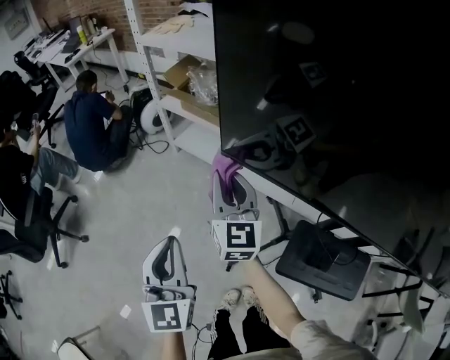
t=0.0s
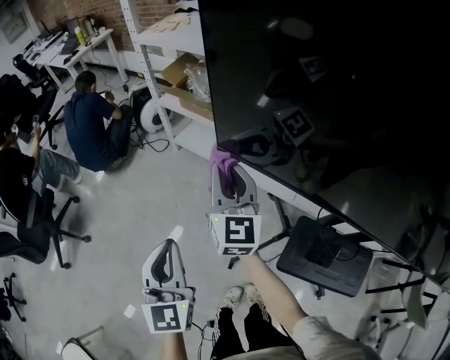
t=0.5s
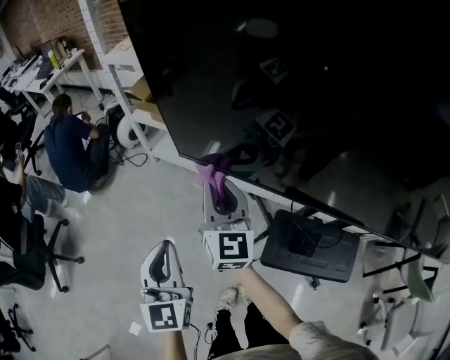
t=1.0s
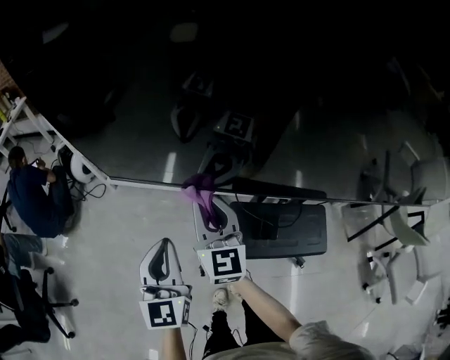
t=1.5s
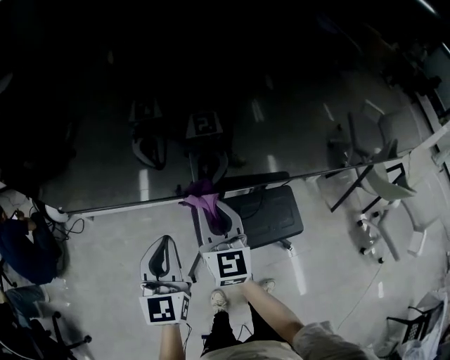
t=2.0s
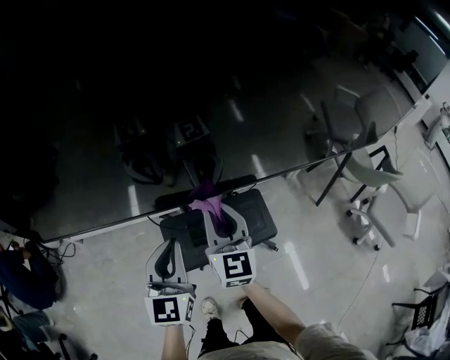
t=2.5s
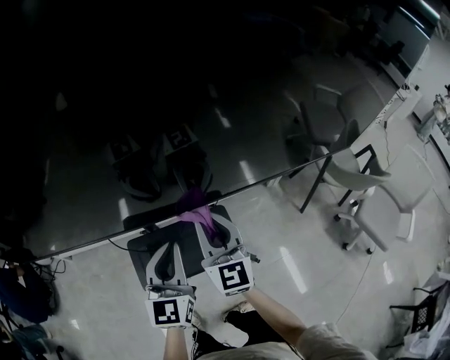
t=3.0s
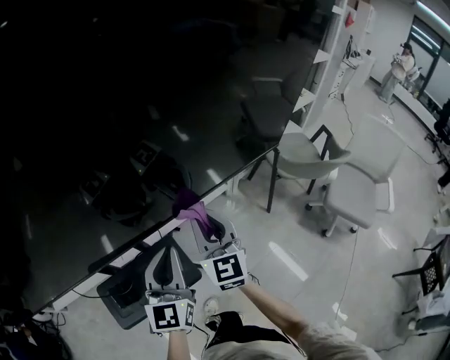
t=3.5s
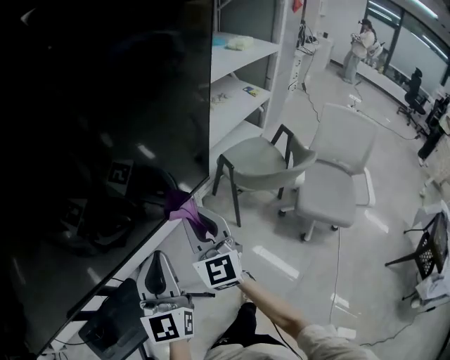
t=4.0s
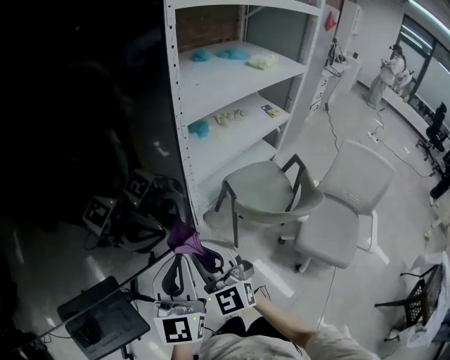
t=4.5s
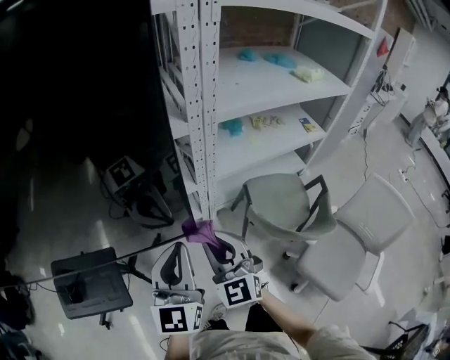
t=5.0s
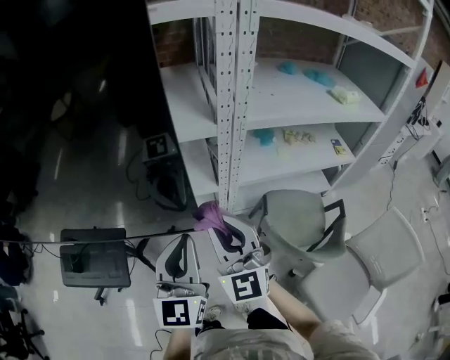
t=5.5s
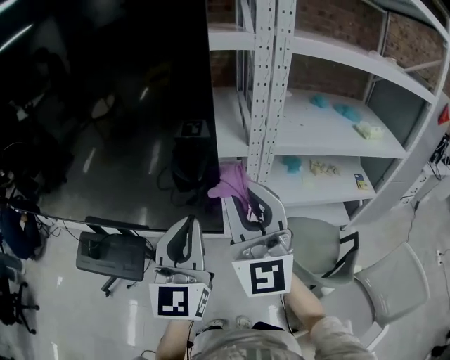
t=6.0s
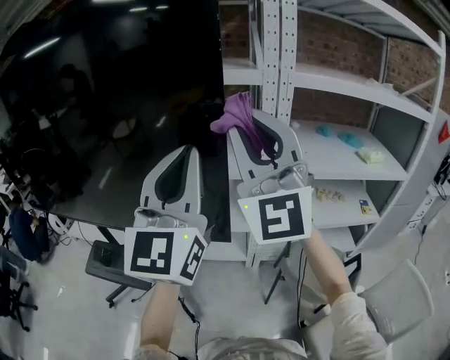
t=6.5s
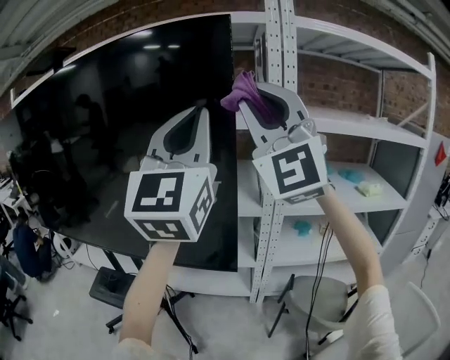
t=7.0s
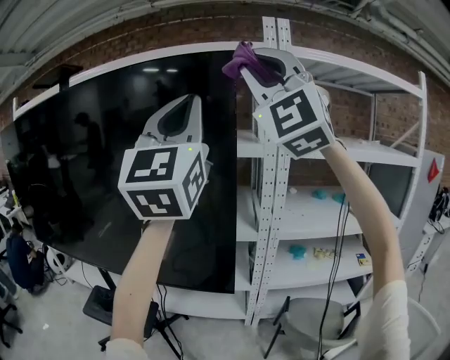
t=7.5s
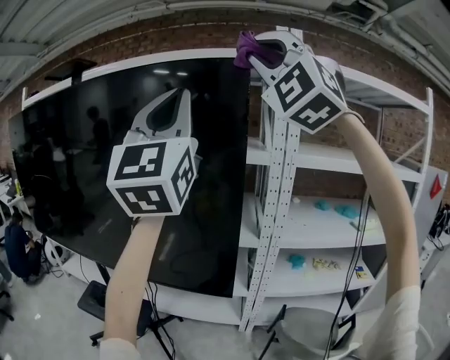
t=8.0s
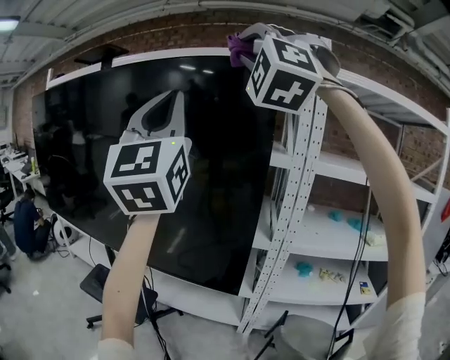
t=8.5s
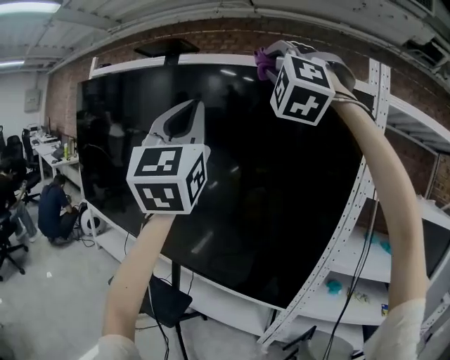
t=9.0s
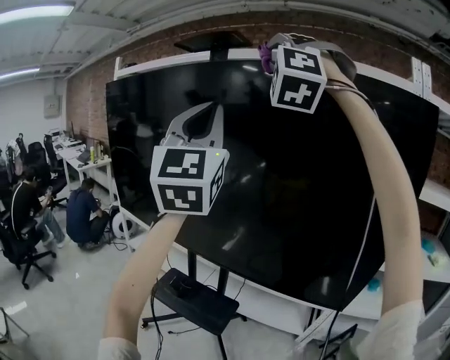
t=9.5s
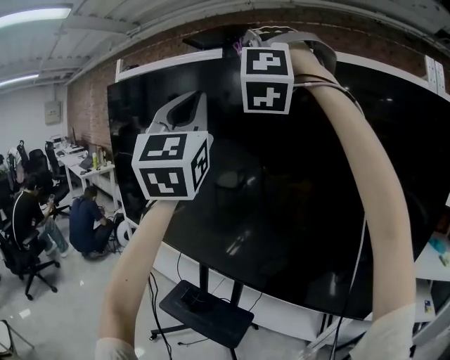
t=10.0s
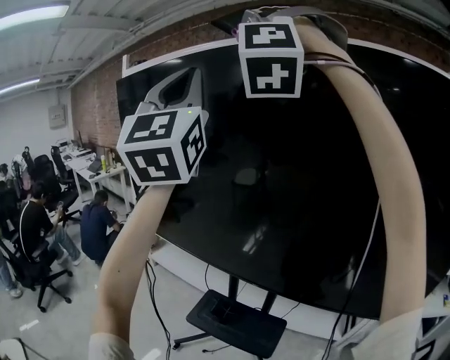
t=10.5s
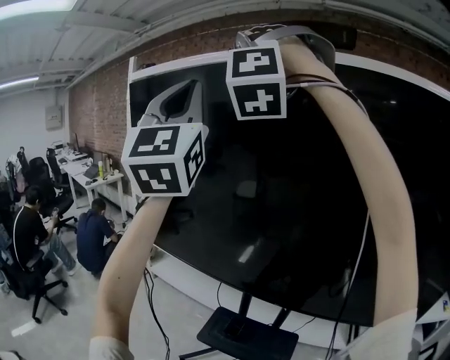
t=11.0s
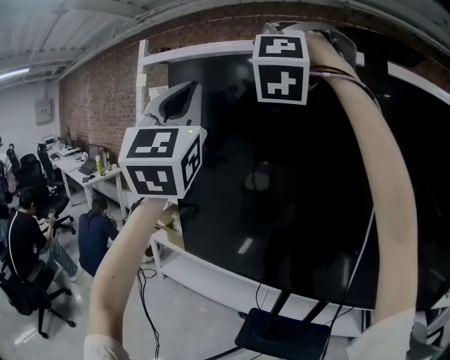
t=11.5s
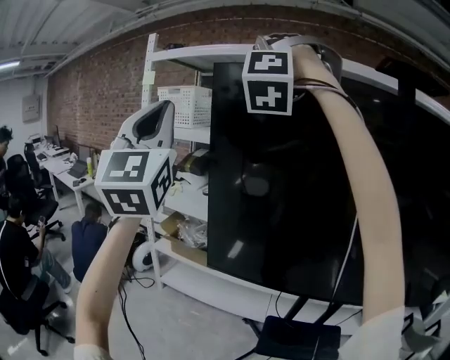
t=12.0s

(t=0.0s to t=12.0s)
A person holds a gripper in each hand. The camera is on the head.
t=0.0s - t=2.0s: The left gripper shifts by approximately 30 cm, and changes its angle by about 40 degrees, while the right gripper changes place by roughly 35 cm, and turns by roughly 30 degrees.
t=2.0s - t=4.0s: Both grippers are carried about 70 cm. The left gripper swivels about 30 degrees, while the right gripper rotates roughly 30 degrees.
t=4.0s - t=6.0s: The right gripper is displaced upward by approximately 25 cm, and swivels approximately 50 degrees. The left gripper heads upward, covering some 15 cm, and swivels roughly 30 degrees.
t=6.0s - t=8.0s: Both grippers travel together upward, about 40 cm. The right gripper rotates around the line of its fingers by approximately 60 degrees, counterclockwise from behind; the left gripper angles its fingers upward, by approximately 30 degrees.
t=8.0s - t=10.0s: Both grippers are carried to the left, some 50 cm. The right gripper rotates roughly 20 degrees. Meanwhile the left gripper turns by some 20 degrees.
t=10.0s - t=12.0s: The pair of grippers is taken to the left, roughly 60 cm.

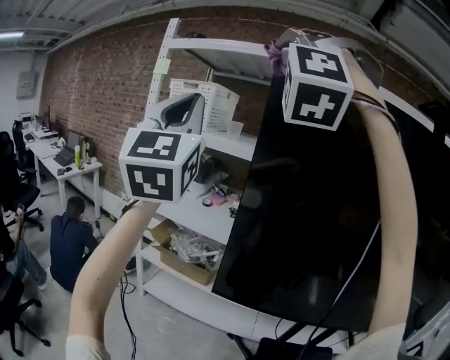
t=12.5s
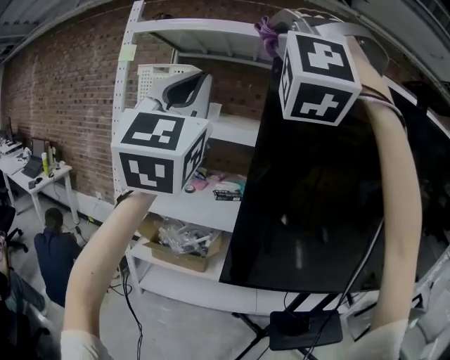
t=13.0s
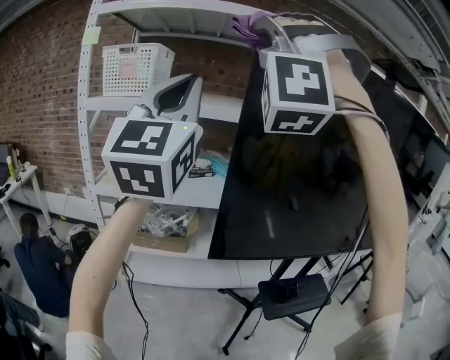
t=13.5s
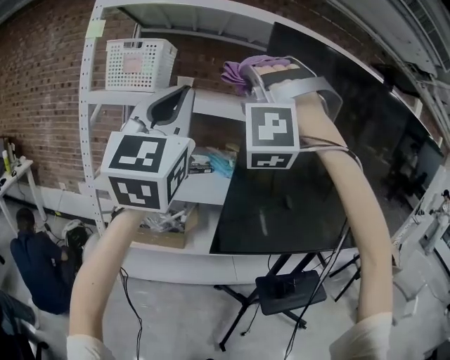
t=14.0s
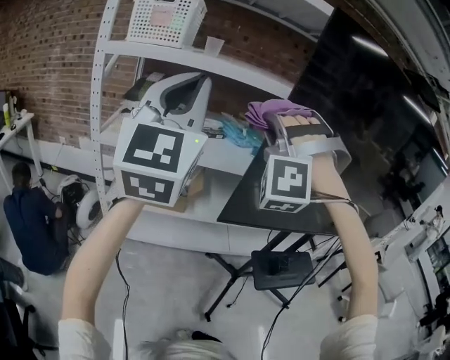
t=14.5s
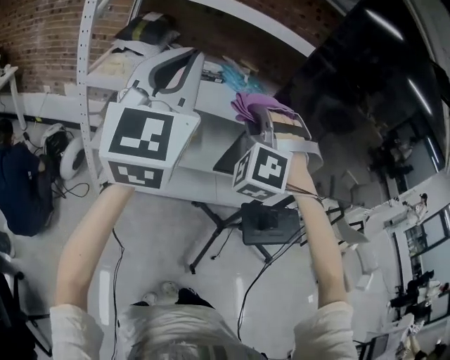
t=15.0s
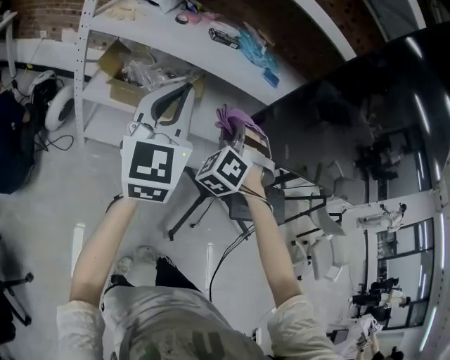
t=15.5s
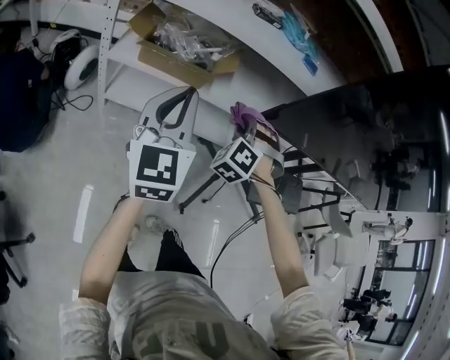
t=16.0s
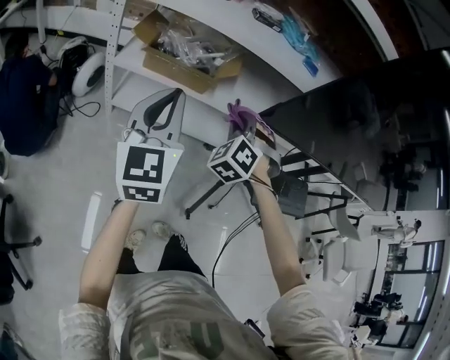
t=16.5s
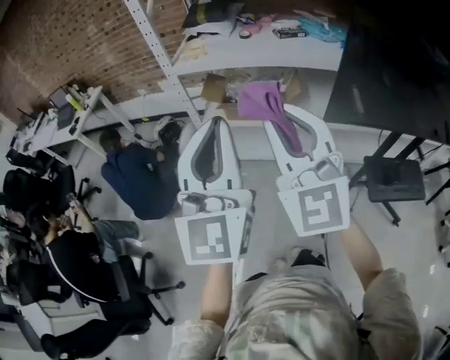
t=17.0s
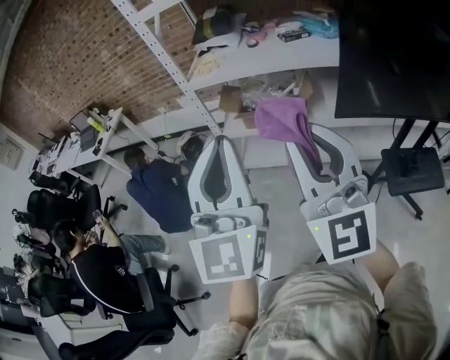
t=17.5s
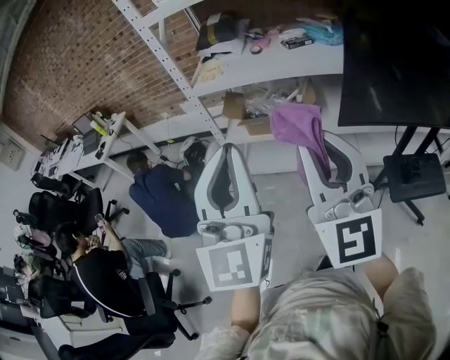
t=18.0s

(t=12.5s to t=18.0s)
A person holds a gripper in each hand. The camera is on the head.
t=12.5s - t=14.5s: The left gripper heads downward and to the left, covering about 15 cm, and rotates about 30 degrees, while the right gripper moves downward, approximately 30 cm, and swivels approximately 30 degrees.
t=14.5s - t=16.0s: Both grippers travel together downward, roughly 40 cm. The right gripper angles its fingers downward, by approximately 30 degrees; the left gripper changes its angle by approximately 30 degrees.
t=16.0s - t=18.0s: The right gripper goes roughly 30 cm upward, and points its fingers approximately 50 degrees further upward, while the left gripper ends up about 25 cm from where it was, and swivels about 20 degrees.

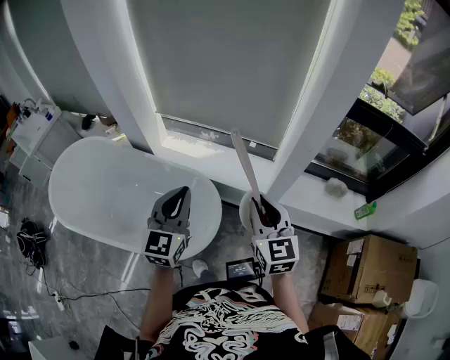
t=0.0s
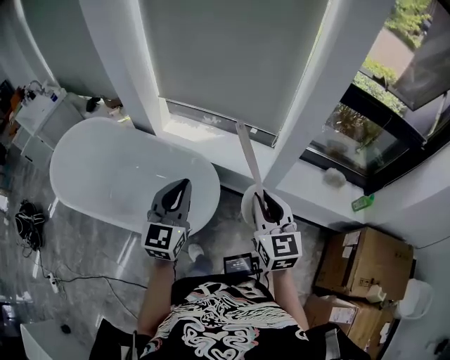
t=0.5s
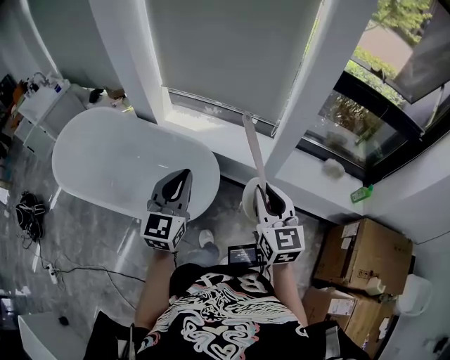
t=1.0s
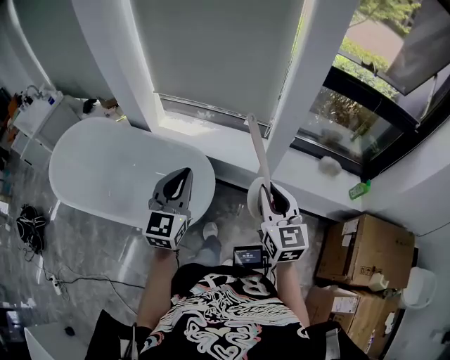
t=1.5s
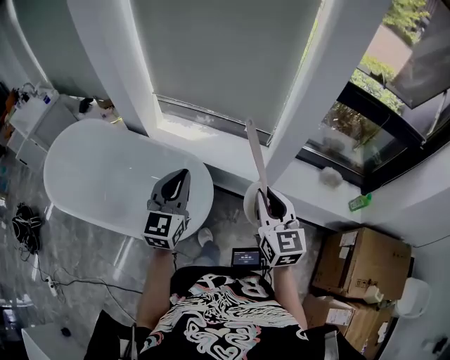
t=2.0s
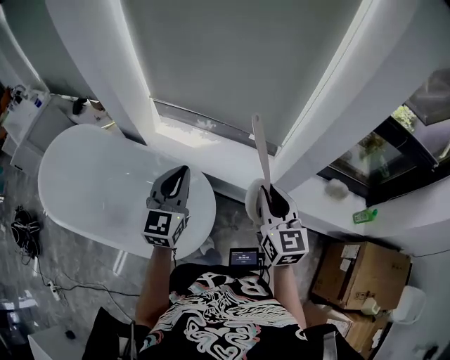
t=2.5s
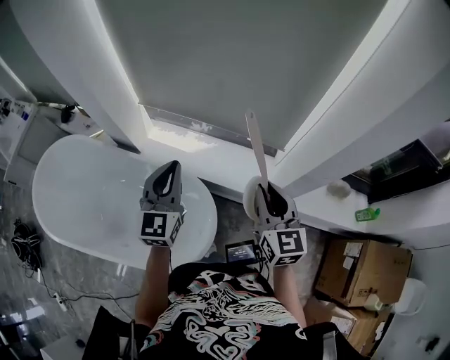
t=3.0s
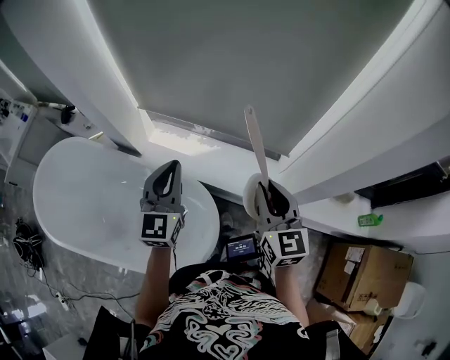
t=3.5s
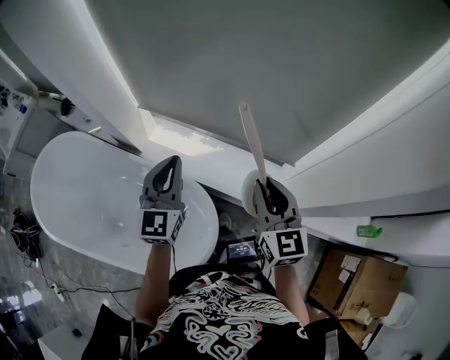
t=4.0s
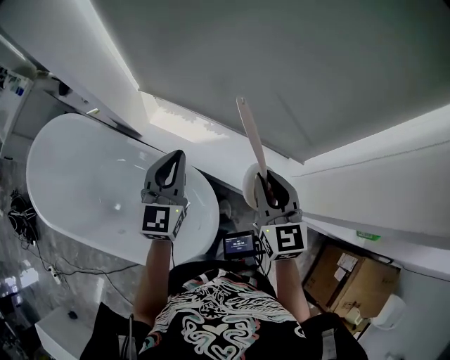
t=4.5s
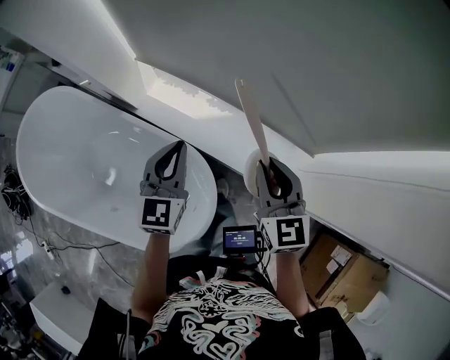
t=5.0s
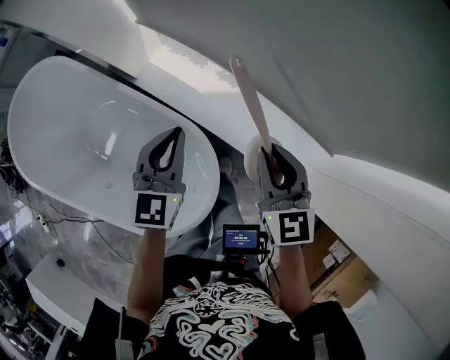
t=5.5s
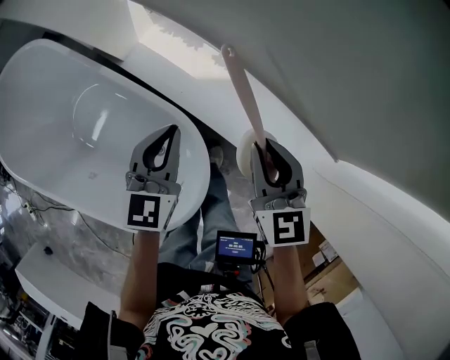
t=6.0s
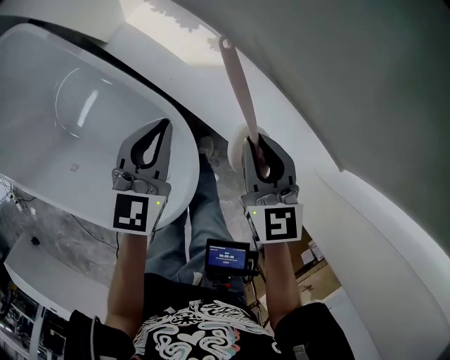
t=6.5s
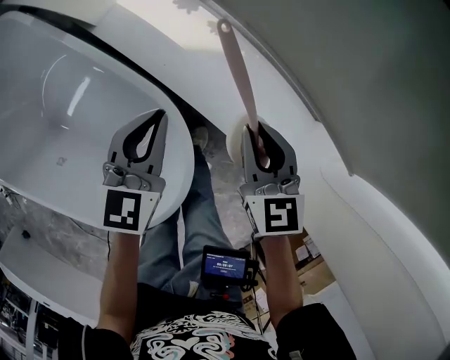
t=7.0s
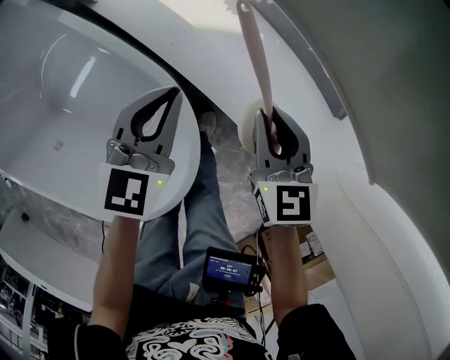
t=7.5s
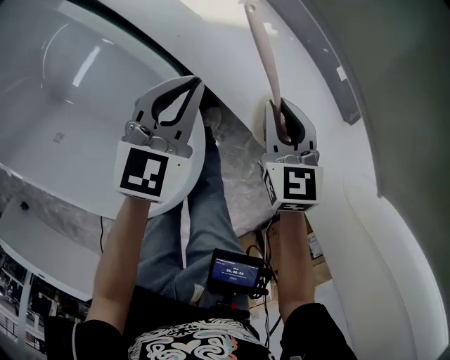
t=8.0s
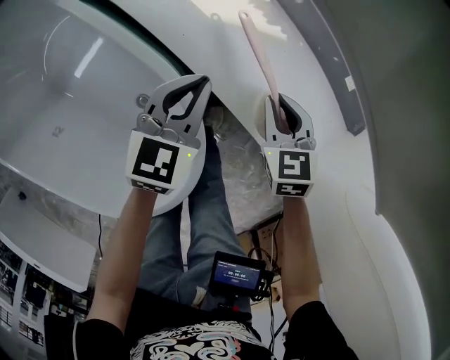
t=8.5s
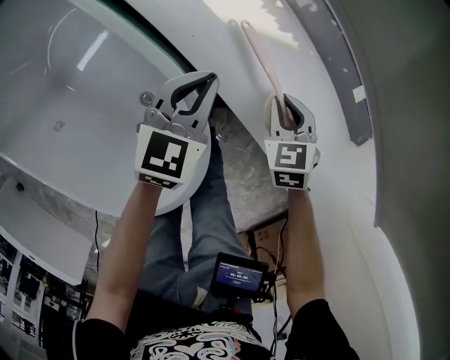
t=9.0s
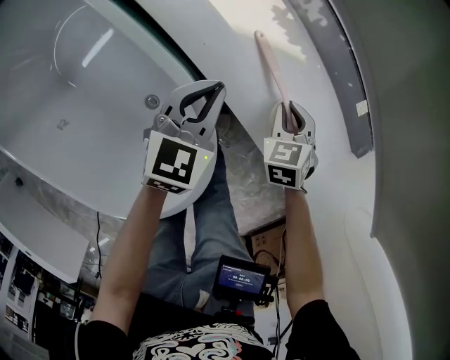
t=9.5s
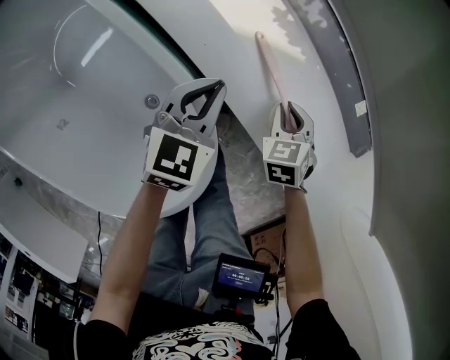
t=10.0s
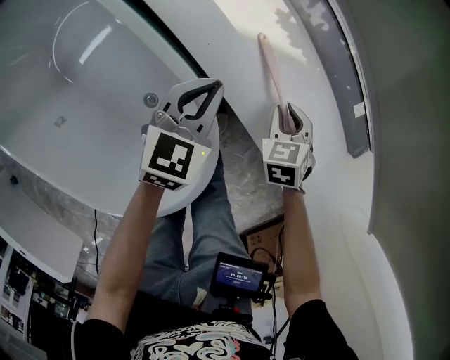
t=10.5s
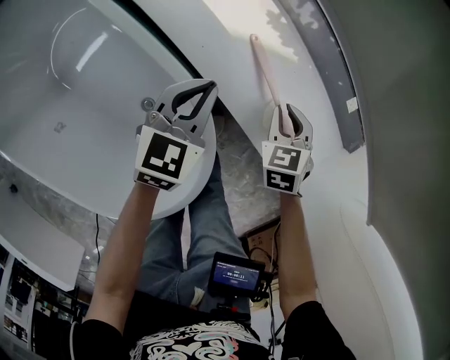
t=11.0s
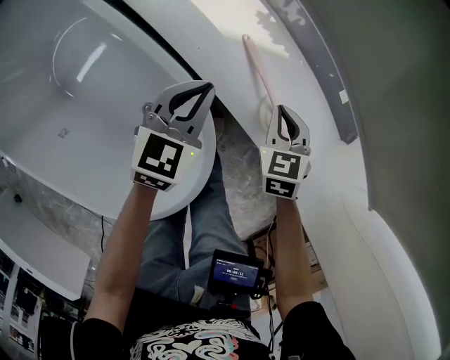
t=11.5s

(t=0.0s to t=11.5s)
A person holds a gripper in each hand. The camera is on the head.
t=0.0s - t=2.0s: The right gripper shifts about 5 cm to the right, and goes backward and returns, roughly 10 cm each way. Meanwhile the left gripper goes backward and returns, approximately 10 cm each way.
t=2.0s - t=4.0s: The two grippers go about 35 cm forward.
t=4.0s - t=6.0s: The right gripper is displaced downward and forward by some 25 cm, and turns by roughly 20 degrees. Meanwhile the left gripper shifts roughly 25 cm downward, and turns by roughly 20 degrees.
t=6.0s - t=7.5s: The two grippers go about 20 cm downward.
t=7.5s - t=9.5s: The right gripper moves downward, some 20 cm, and rotates some 30 degrees, while the left gripper is displaced downward by some 10 cm.
t=9.5s - t=11.5s: The right gripper moves upward, about 10 cm; the left gripper goes approximately 5 cm upward.
